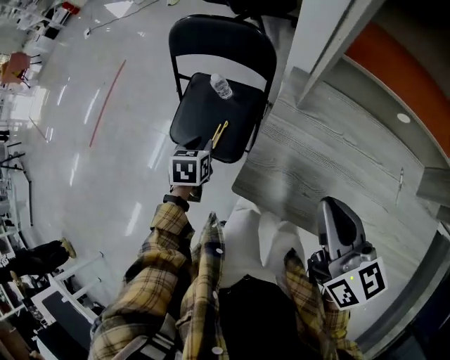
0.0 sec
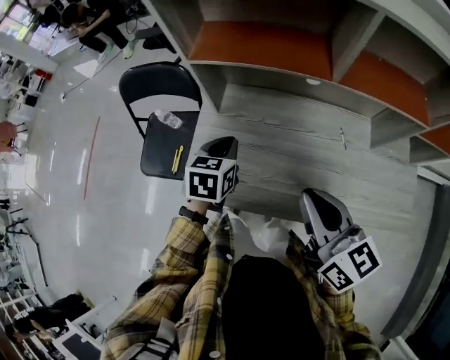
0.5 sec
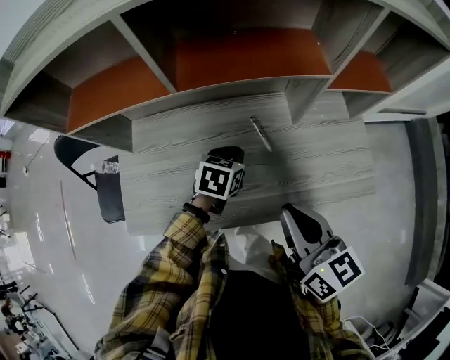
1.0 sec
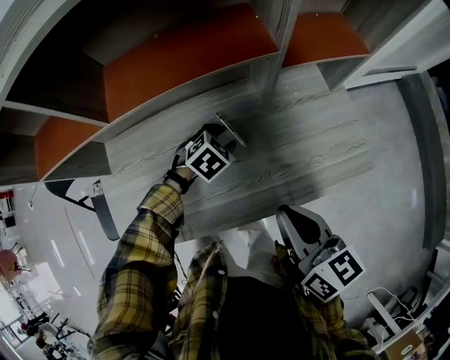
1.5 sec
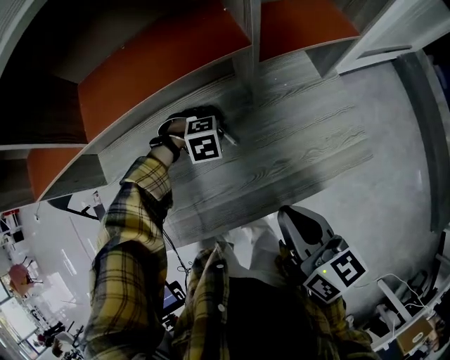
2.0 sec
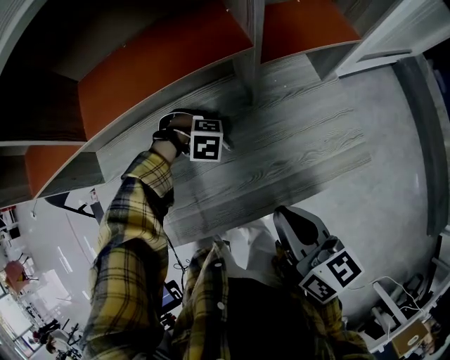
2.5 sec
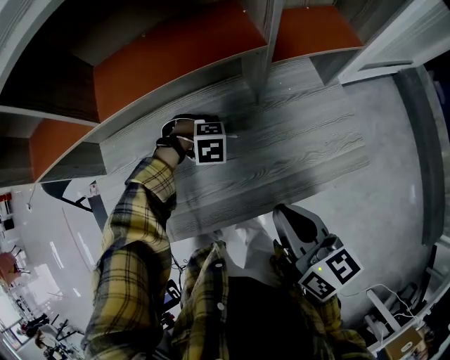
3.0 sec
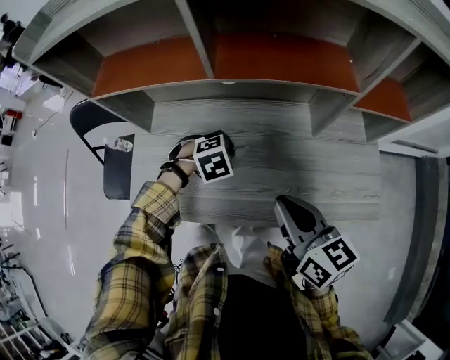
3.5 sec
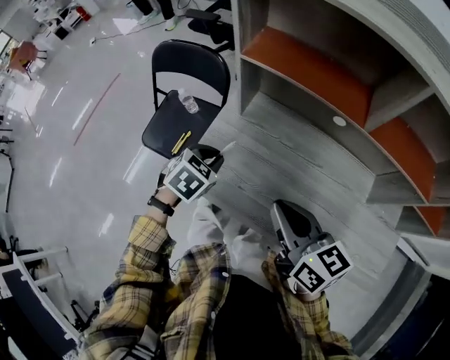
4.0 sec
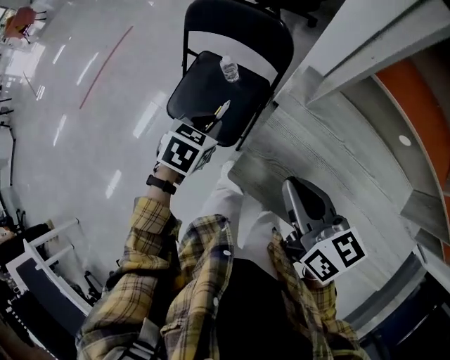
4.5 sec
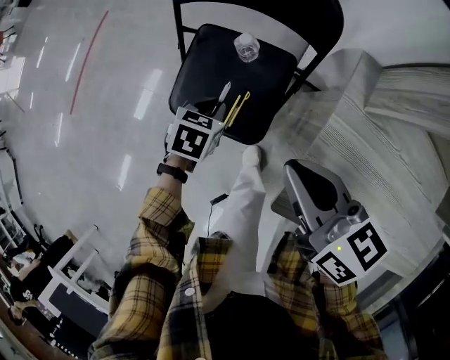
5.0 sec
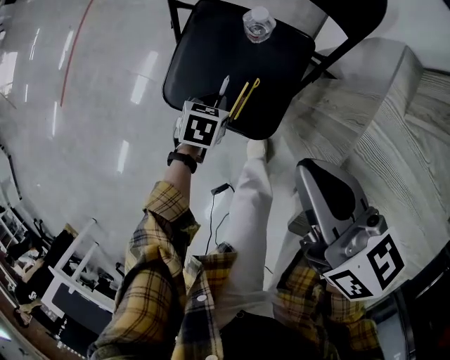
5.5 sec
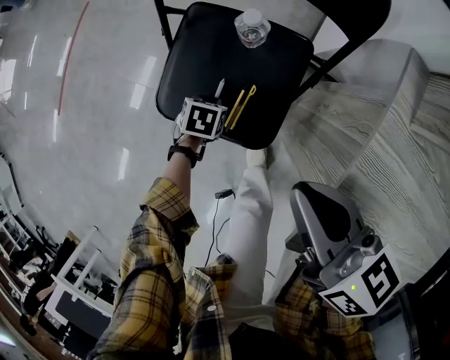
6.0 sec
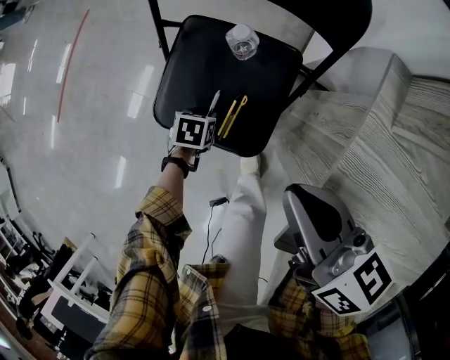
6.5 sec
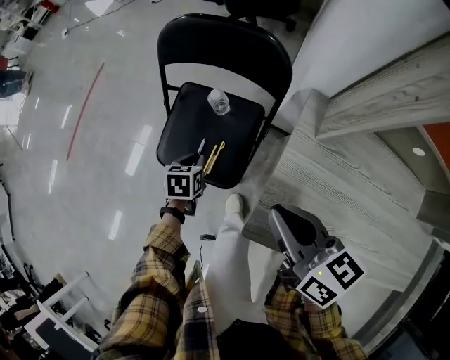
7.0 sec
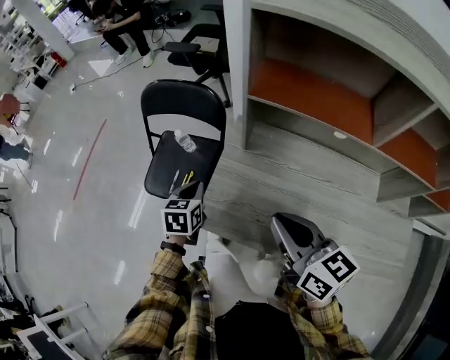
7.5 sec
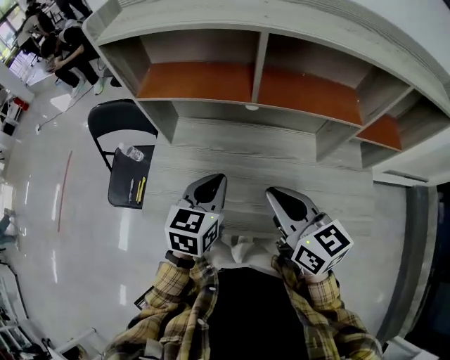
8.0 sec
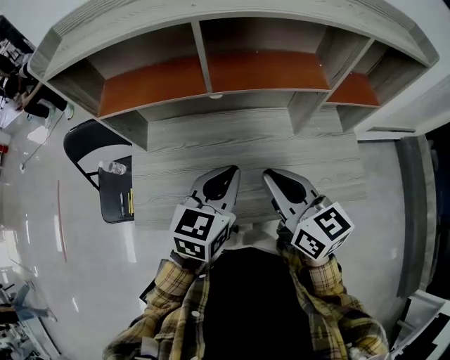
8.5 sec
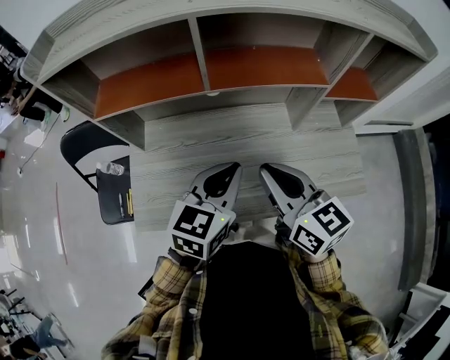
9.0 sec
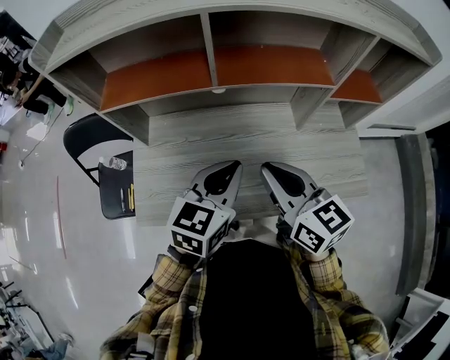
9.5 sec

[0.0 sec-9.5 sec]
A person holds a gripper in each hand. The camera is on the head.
0.0 sec to 2.0 sec: The pair of grippers is taken some 60 cm. The left gripper rolls clockwise, seen from behind, by approximately 120 degrees, and closes and opens again, while the right gripper changes its angle by roughly 40 degrees.
2.0 sec to 4.0 sec: The right gripper shifts by about 35 cm, and rotates roughly 50 degrees. Meanwhile the left gripper ends up some 50 cm from where it was, rolls counterclockwise, seen from behind, by roughly 80 degrees, and closes.
4.0 sec to 5.5 sec: The right gripper moves to the left, forward and downward, about 50 cm. Meanwhile the left gripper travels downward, to the left and forward by some 50 cm, and turns by some 30 degrees.
5.5 sec to 7.5 sec: The right gripper changes place by about 35 cm, while the left gripper heads upward, covering roughly 35 cm, rotates roughly 30 degrees, and opens and closes again.
7.5 sec to 9.5 sec: The right gripper changes place by some 25 cm, and rotates about 20 degrees; the left gripper shifts by about 50 cm, and rotates some 50 degrees.

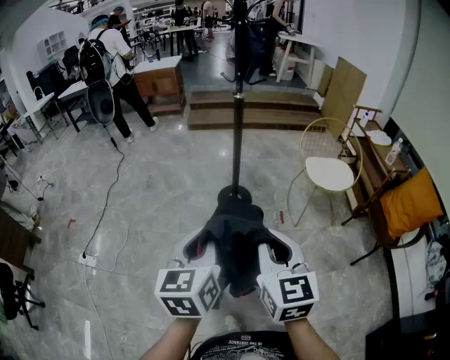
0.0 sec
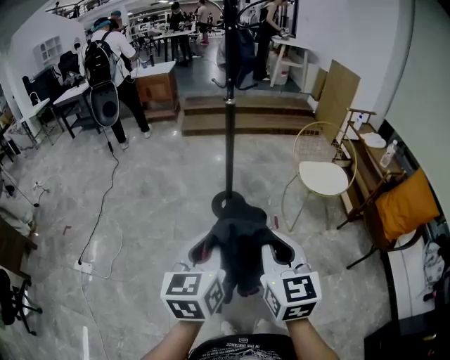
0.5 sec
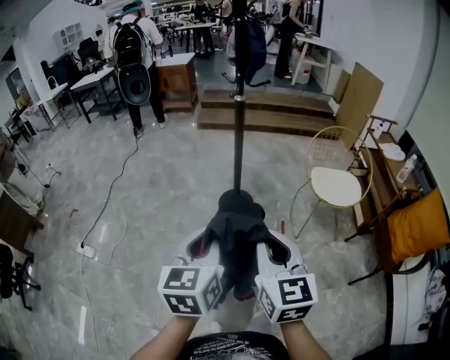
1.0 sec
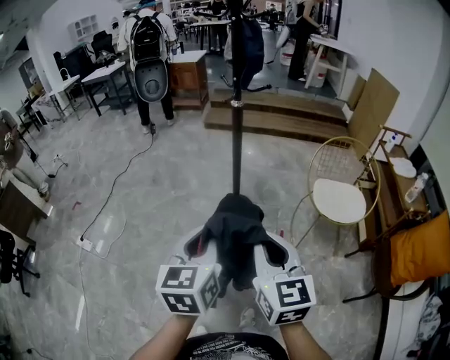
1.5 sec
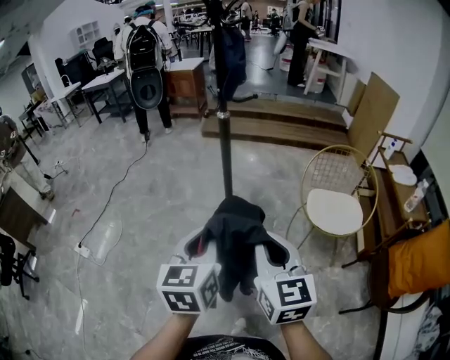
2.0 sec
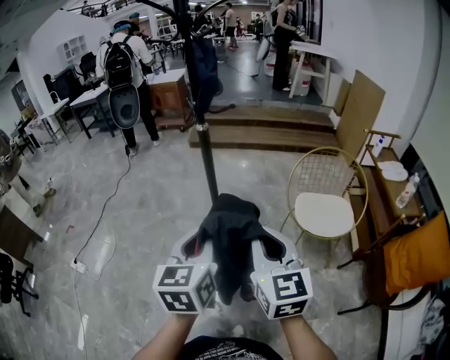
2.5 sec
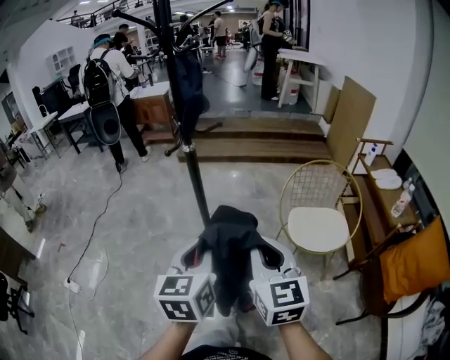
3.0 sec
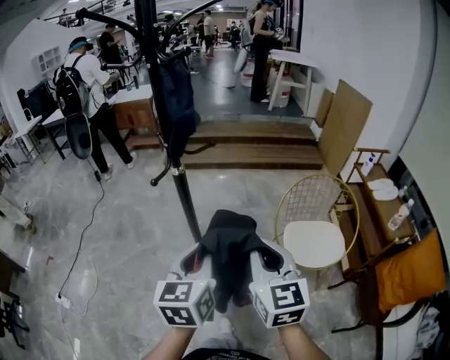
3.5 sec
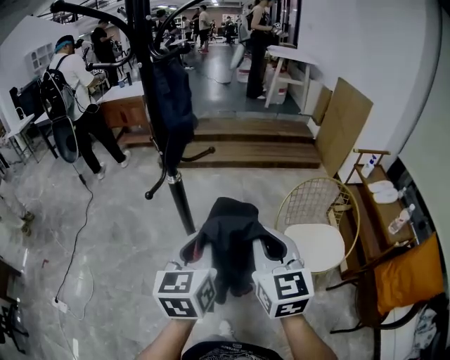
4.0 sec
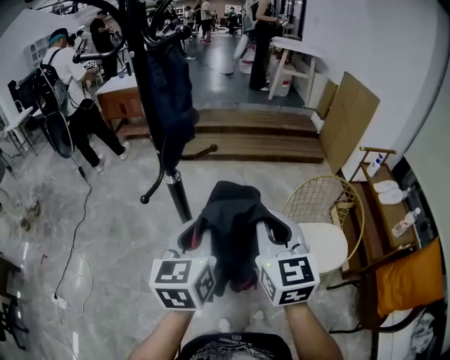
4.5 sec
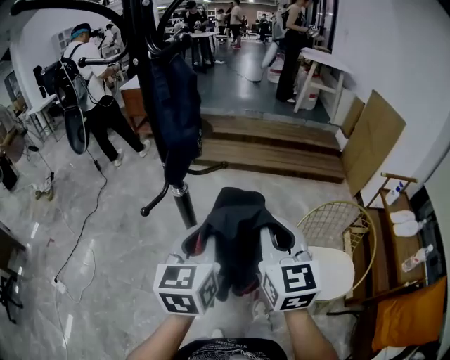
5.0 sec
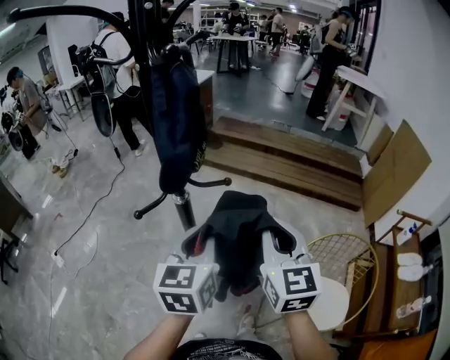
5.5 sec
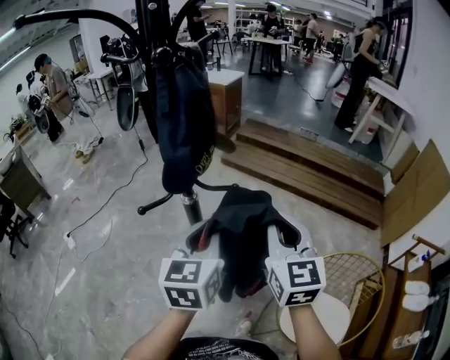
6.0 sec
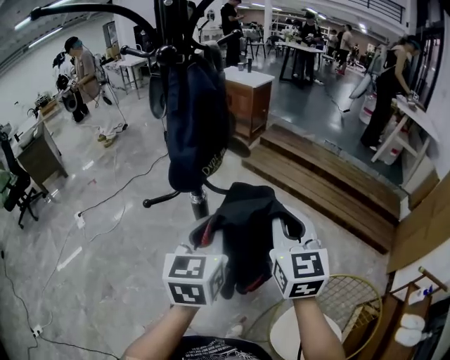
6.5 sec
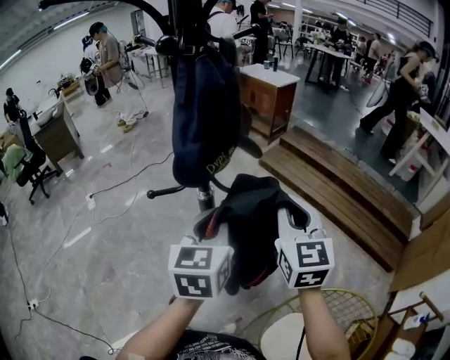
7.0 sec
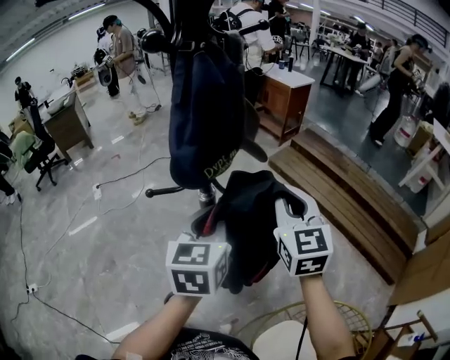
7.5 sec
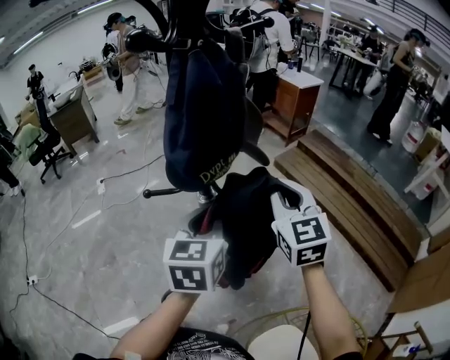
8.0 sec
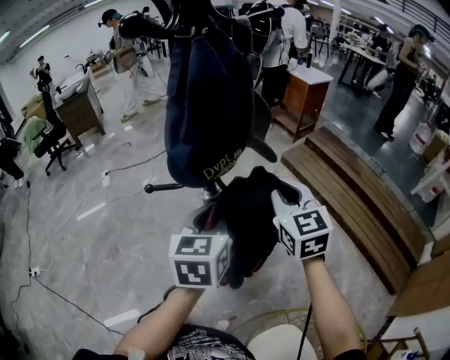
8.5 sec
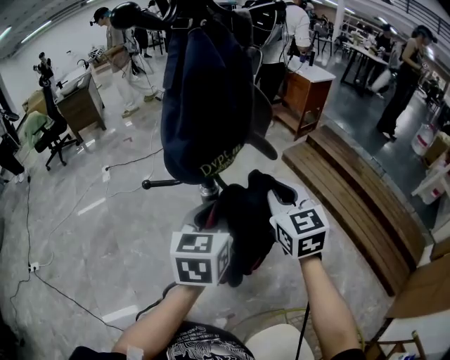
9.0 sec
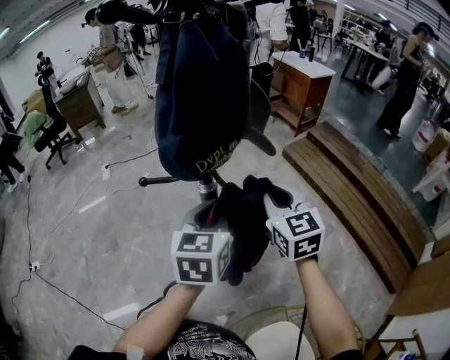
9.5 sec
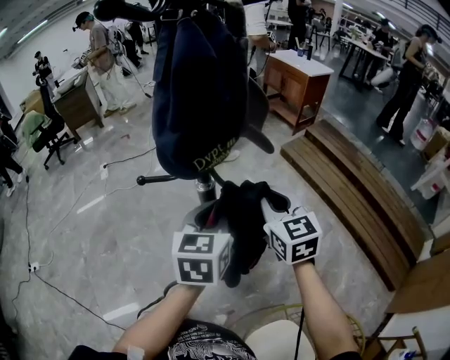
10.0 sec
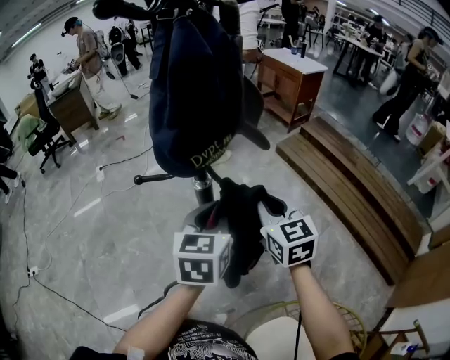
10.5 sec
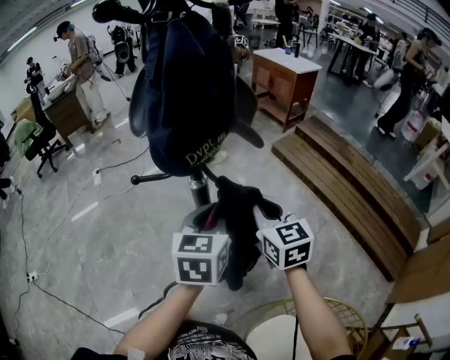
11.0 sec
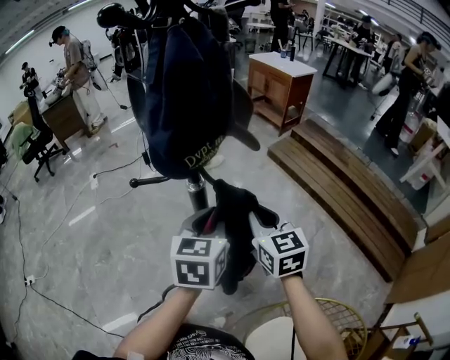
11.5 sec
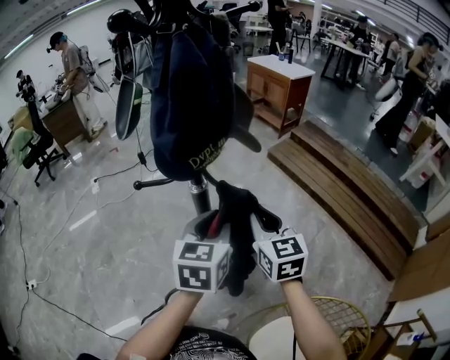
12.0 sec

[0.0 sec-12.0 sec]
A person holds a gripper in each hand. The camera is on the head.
0.0 sec to 2.0 sec: The two grippers go some 30 cm to the right and forward.
2.0 sec to 4.0 sec: The two grippers go approximately 30 cm forward.
4.0 sec to 6.0 sec: The right gripper changes place by roughly 25 cm, and swivels about 30 degrees. Meanwhile the left gripper ends up approximately 15 cm from where it was, and rotates some 30 degrees.
6.0 sec to 8.0 sec: The left gripper shifts by about 10 cm, and rotates some 30 degrees. The right gripper changes place by some 20 cm, and rotates about 30 degrees.
8.0 sec to 10.0 sec: The right gripper is displaced downward by about 10 cm; the left gripper moves about 5 cm.
10.0 sec to 12.0 sec: The right gripper travels backward by some 5 cm.

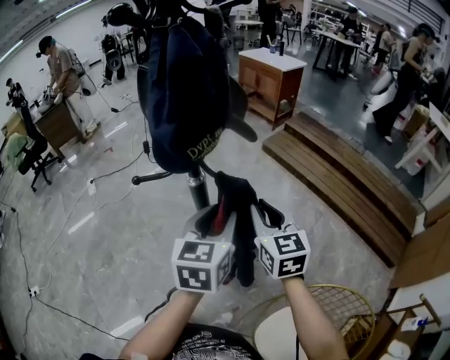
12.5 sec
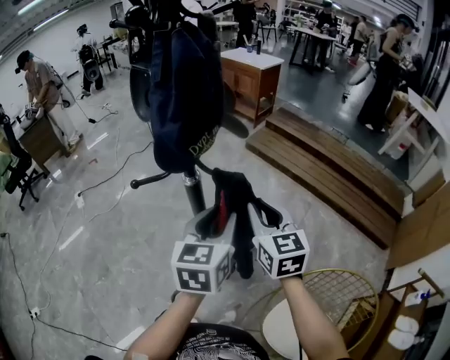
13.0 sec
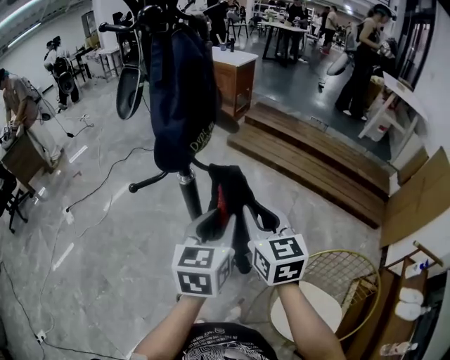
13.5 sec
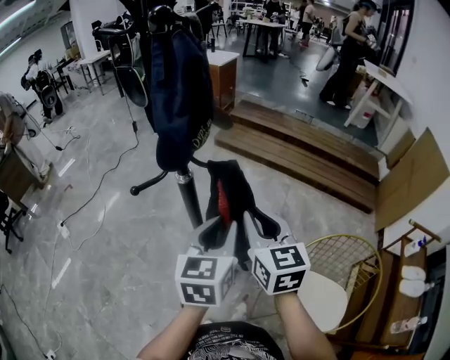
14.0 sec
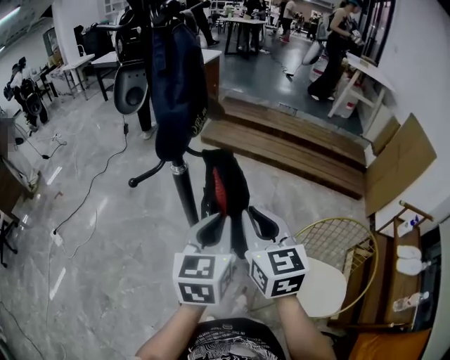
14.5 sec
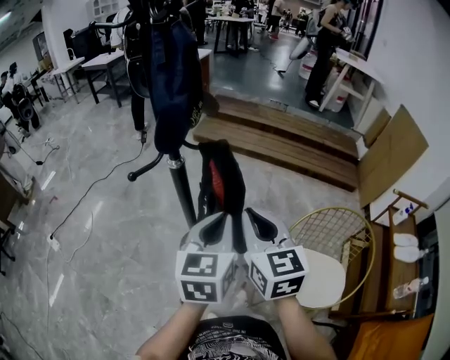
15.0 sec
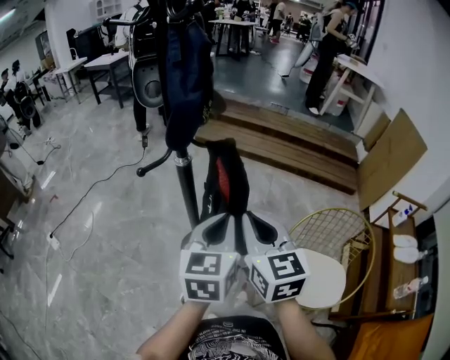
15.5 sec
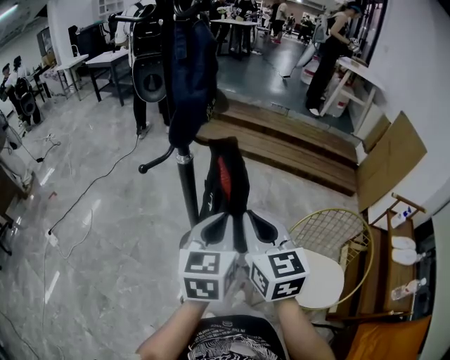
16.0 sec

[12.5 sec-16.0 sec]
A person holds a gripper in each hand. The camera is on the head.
12.5 sec to 14.5 sec: The left gripper moves about 10 cm, rotates roughly 20 degrees, and closes its fingers; the right gripper changes place by some 15 cm, and rotates approximately 30 degrees.
14.5 sec to 16.0 sec: The right gripper goes roughly 5 cm backward.

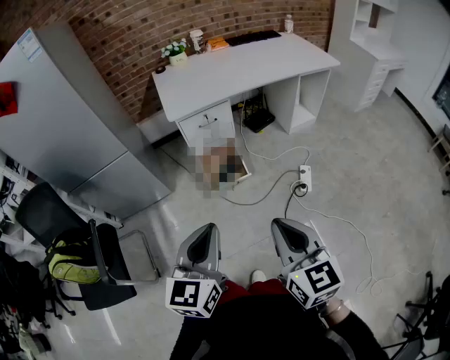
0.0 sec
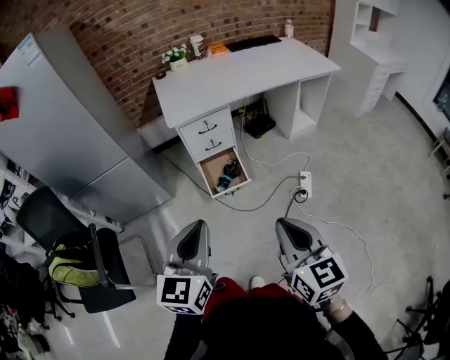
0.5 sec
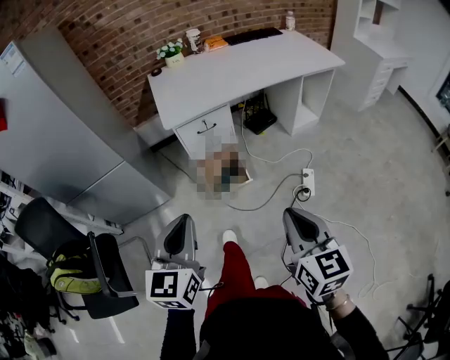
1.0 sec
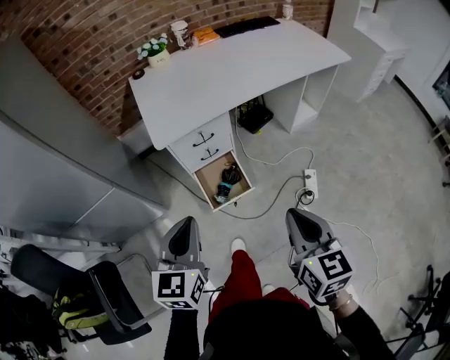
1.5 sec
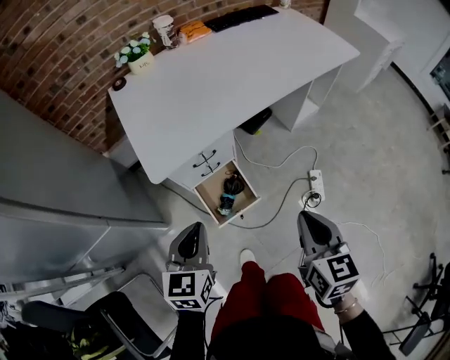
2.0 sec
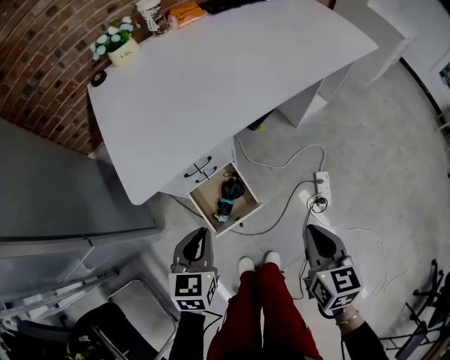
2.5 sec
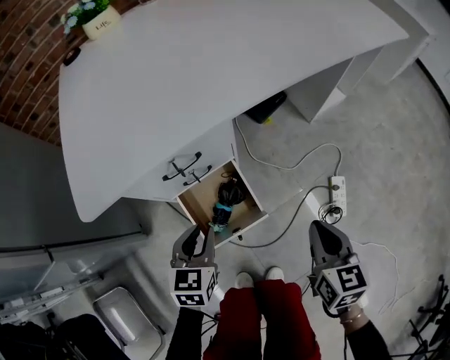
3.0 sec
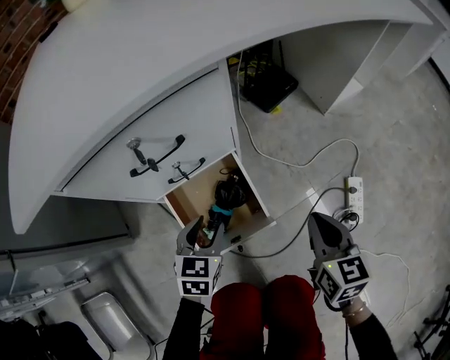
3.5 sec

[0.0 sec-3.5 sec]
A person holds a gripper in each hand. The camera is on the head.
0.0 sec to 2.0 sec: The two grippers go some 40 cm forward. The right gripper turns by some 20 degrees.
2.0 sec to 3.5 sec: Both grippers move downward, about 50 cm. The left gripper opens.
